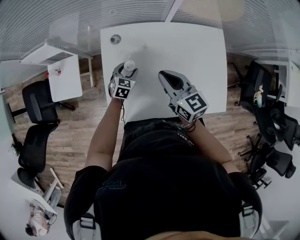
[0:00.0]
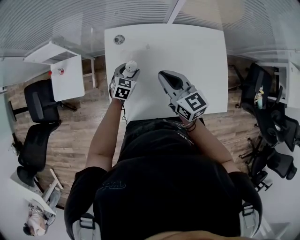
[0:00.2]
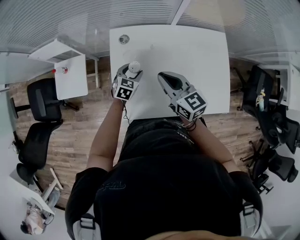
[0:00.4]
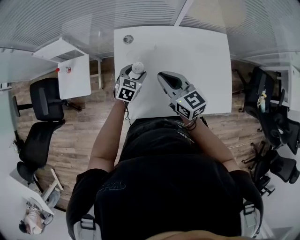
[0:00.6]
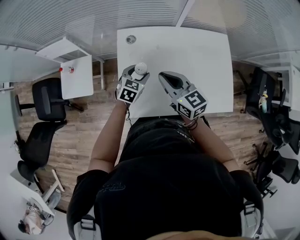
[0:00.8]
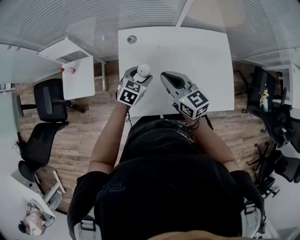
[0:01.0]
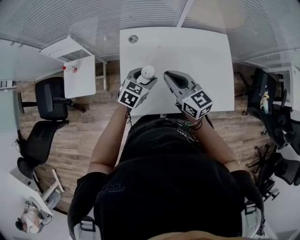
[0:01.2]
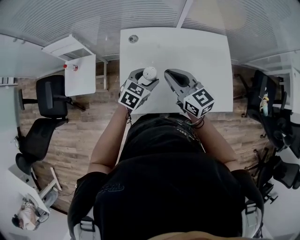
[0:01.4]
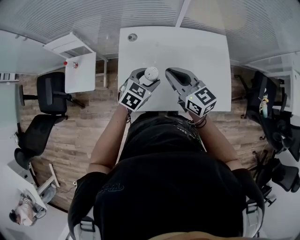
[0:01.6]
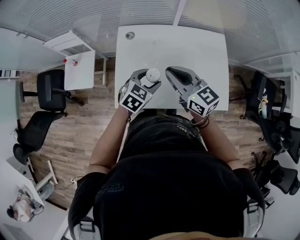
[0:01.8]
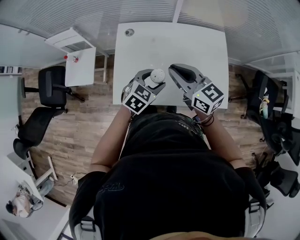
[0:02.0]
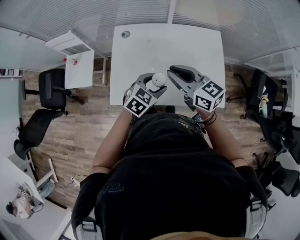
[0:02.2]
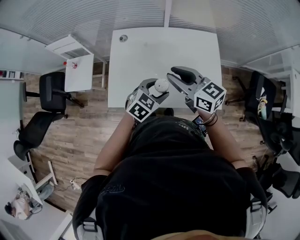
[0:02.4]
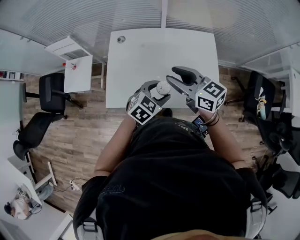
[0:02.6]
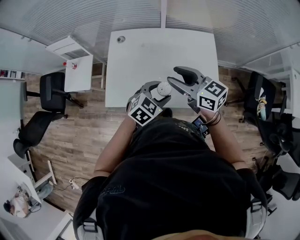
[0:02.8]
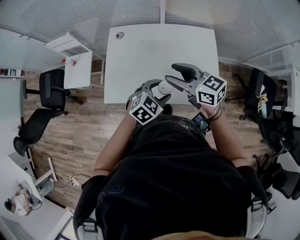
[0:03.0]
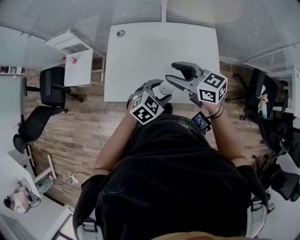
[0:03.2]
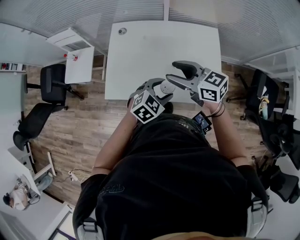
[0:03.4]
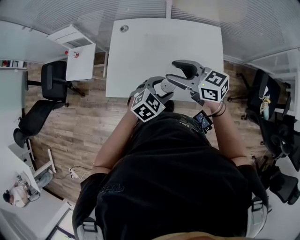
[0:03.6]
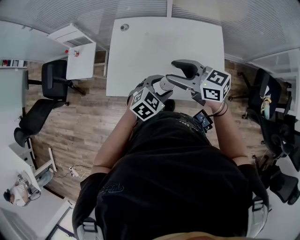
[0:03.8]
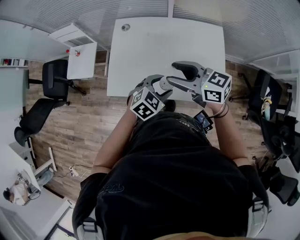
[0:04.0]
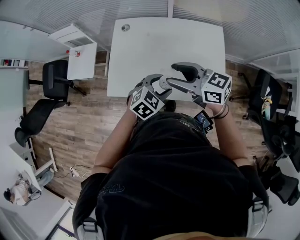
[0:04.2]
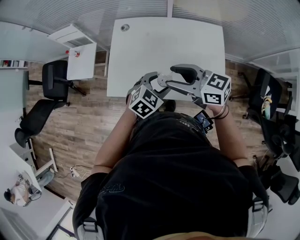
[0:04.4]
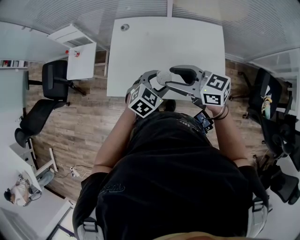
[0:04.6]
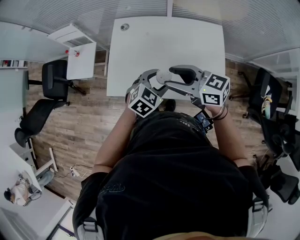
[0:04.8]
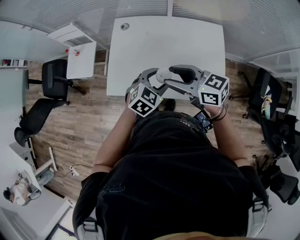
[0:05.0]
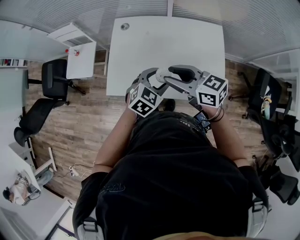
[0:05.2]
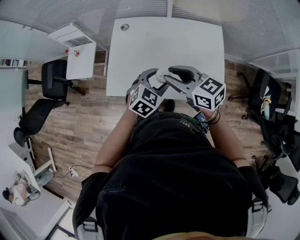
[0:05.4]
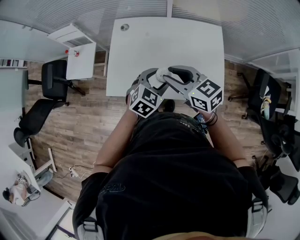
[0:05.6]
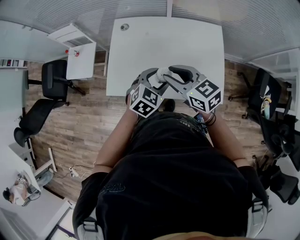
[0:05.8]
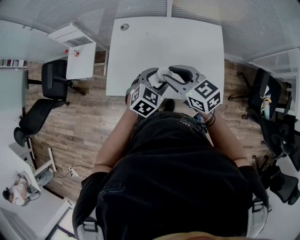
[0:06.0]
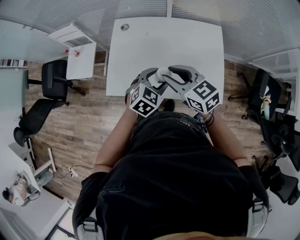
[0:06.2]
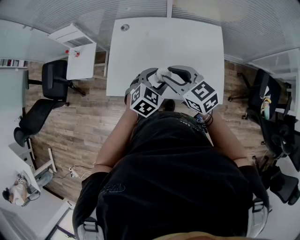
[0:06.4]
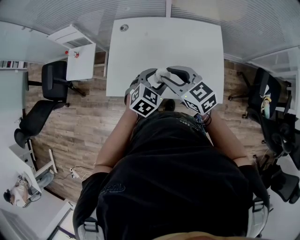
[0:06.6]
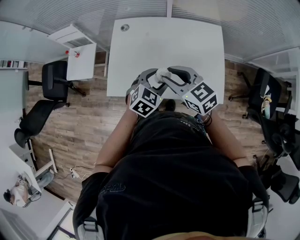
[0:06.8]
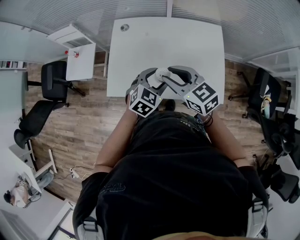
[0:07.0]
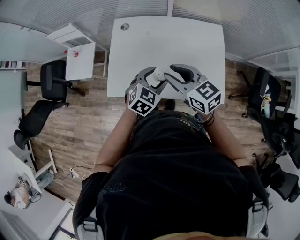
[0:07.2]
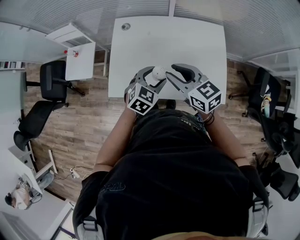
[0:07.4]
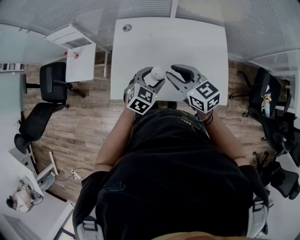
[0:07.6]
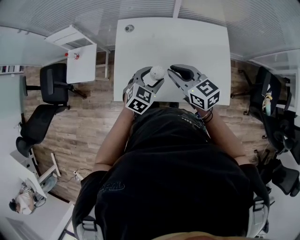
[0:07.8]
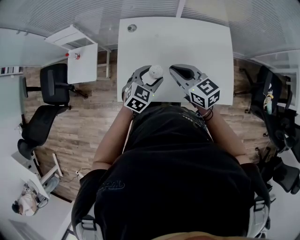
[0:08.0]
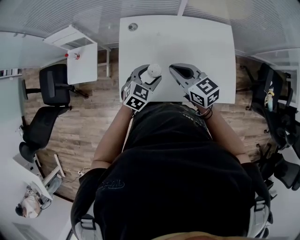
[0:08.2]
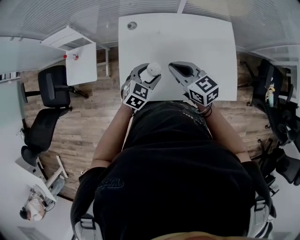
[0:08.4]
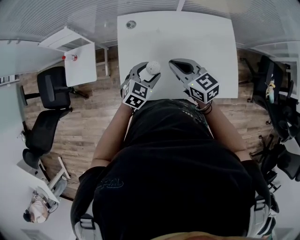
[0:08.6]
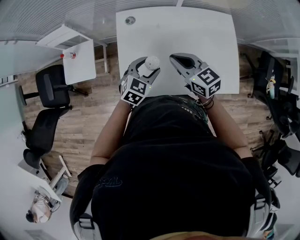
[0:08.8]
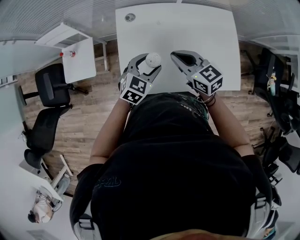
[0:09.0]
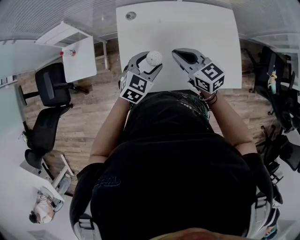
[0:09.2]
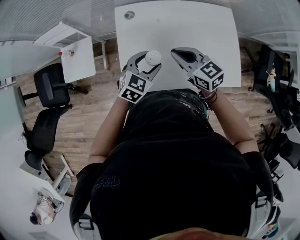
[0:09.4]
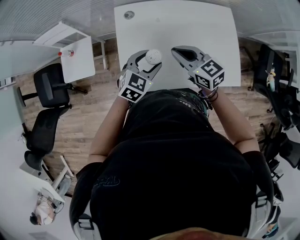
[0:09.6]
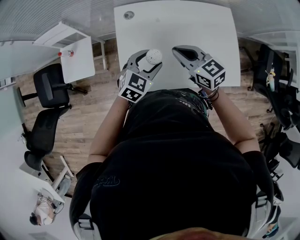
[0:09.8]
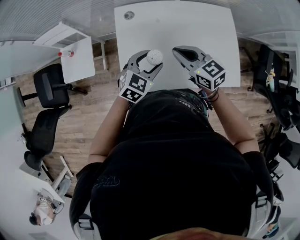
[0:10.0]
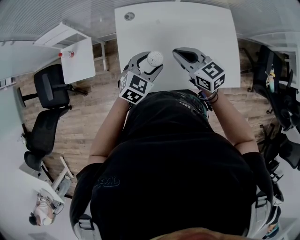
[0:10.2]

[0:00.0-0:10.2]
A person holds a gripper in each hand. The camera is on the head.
0:00.0 to 0:01.4: The left gripper is displaced upward and backward by roughly 20 cm. The right gripper shifts roughly 10 cm backward and upward.
0:01.4 to 0:03.0: The two grippers go approximately 20 cm to the right and backward. The right gripper opens its fingers.
0:03.0 to 0:04.4: The grippers make only small movements.
0:04.4 to 0:05.8: The right gripper closes.
0:05.8 to 0:07.2: The grippers move only a little.
0:07.2 to 0:08.8: The right gripper heads to the left, forward and downward, covering roughly 15 cm, and closes up. Meanwhile the left gripper shifts some 15 cm to the left and forward.
0:08.8 to 0:10.2: There are only small adjustments of the grippers.

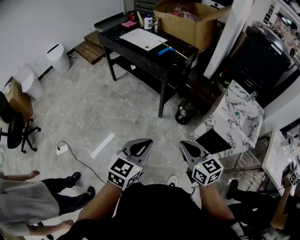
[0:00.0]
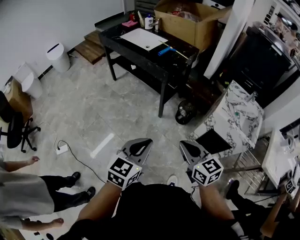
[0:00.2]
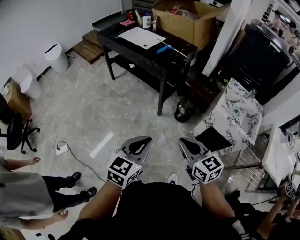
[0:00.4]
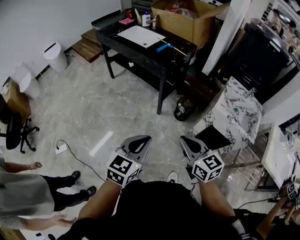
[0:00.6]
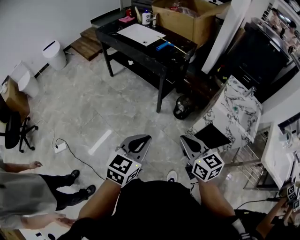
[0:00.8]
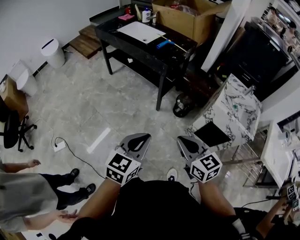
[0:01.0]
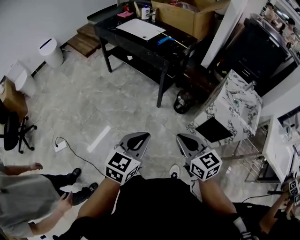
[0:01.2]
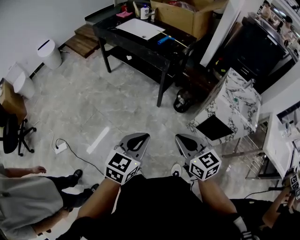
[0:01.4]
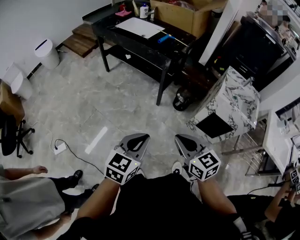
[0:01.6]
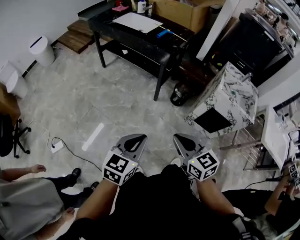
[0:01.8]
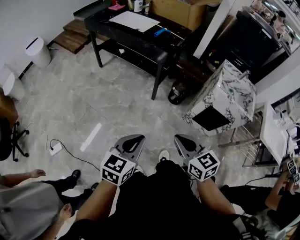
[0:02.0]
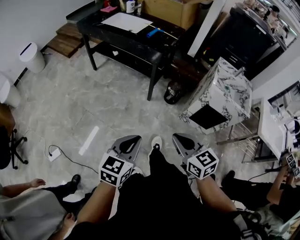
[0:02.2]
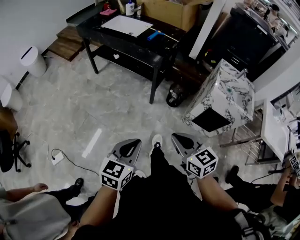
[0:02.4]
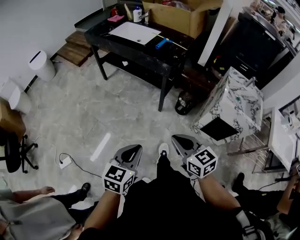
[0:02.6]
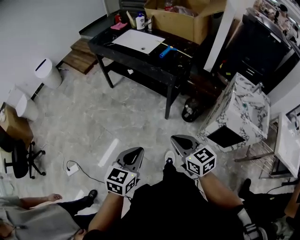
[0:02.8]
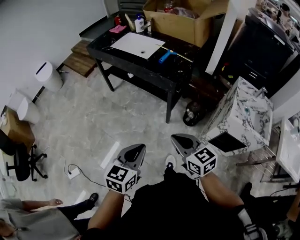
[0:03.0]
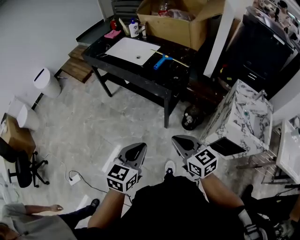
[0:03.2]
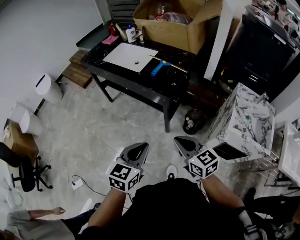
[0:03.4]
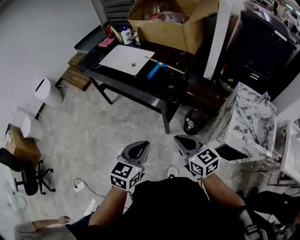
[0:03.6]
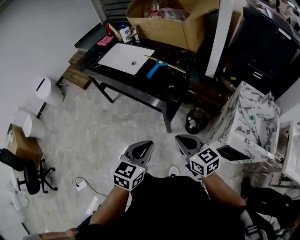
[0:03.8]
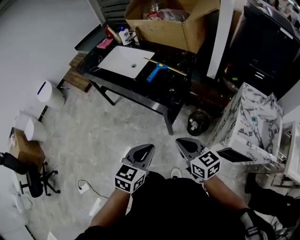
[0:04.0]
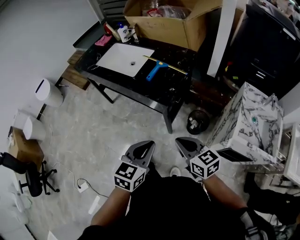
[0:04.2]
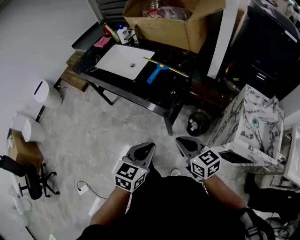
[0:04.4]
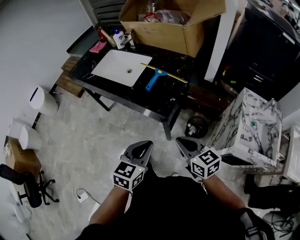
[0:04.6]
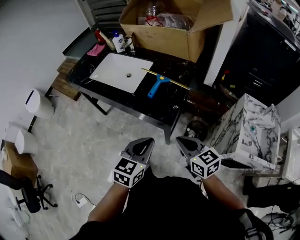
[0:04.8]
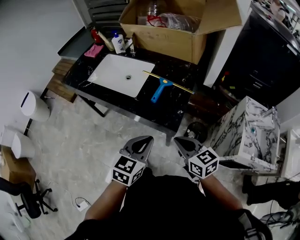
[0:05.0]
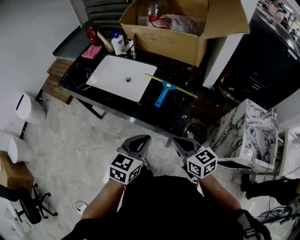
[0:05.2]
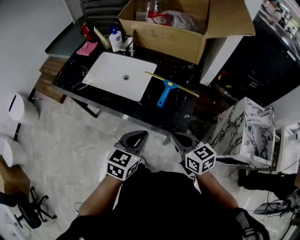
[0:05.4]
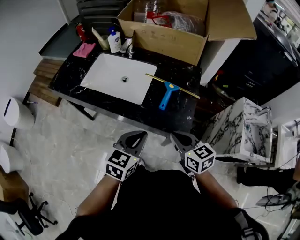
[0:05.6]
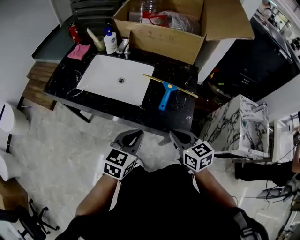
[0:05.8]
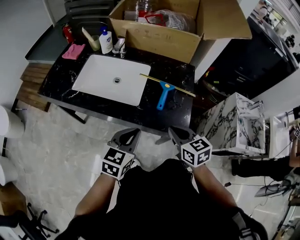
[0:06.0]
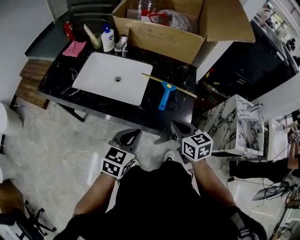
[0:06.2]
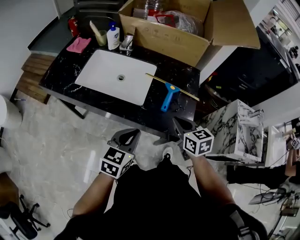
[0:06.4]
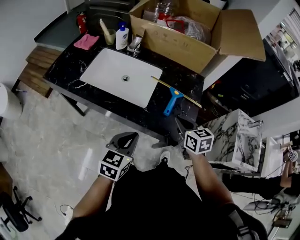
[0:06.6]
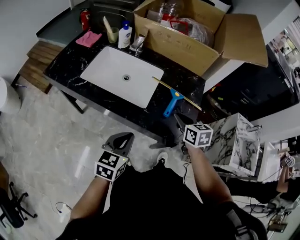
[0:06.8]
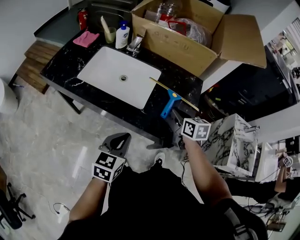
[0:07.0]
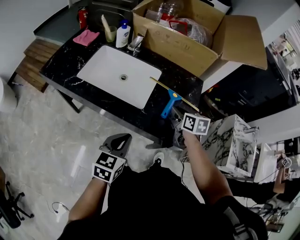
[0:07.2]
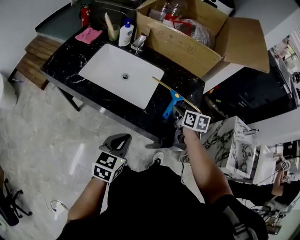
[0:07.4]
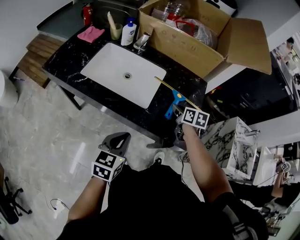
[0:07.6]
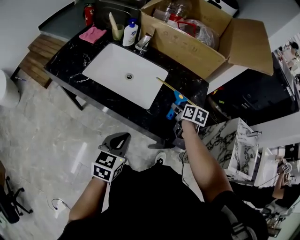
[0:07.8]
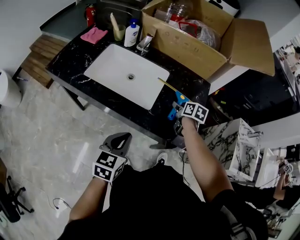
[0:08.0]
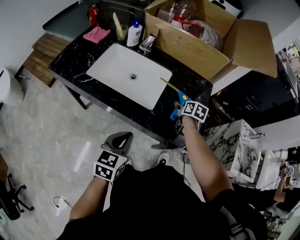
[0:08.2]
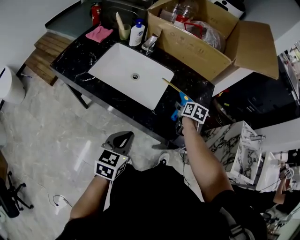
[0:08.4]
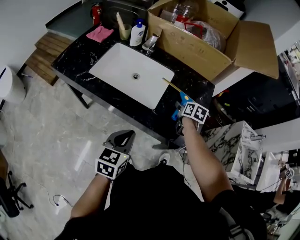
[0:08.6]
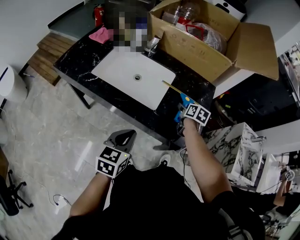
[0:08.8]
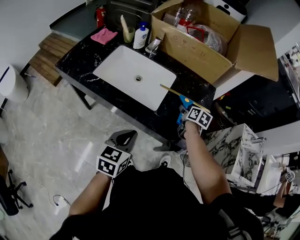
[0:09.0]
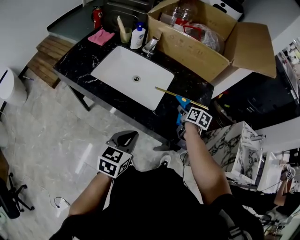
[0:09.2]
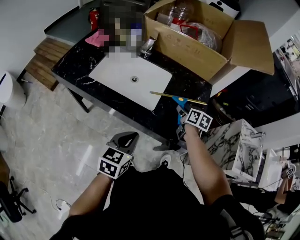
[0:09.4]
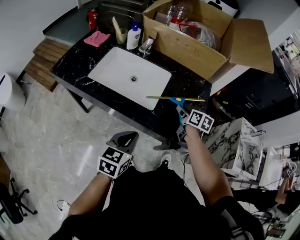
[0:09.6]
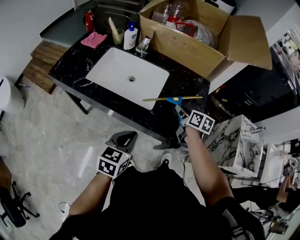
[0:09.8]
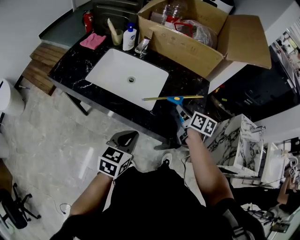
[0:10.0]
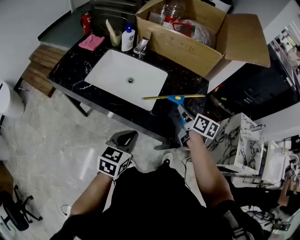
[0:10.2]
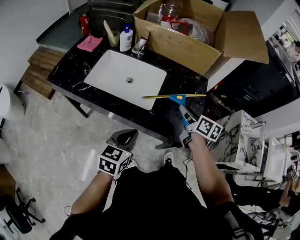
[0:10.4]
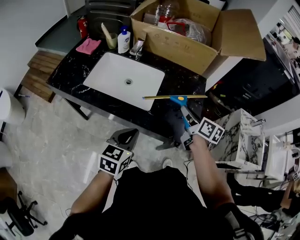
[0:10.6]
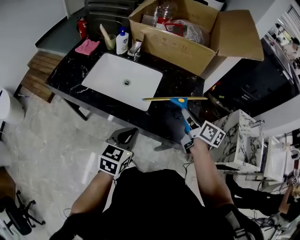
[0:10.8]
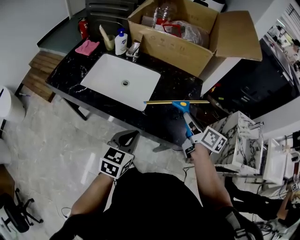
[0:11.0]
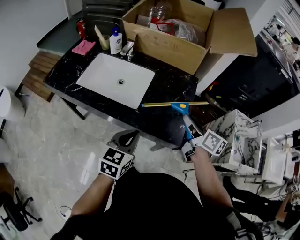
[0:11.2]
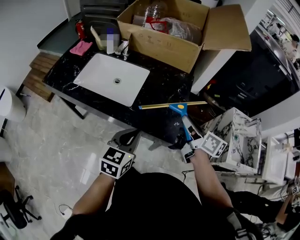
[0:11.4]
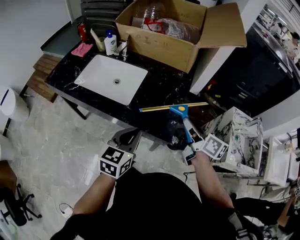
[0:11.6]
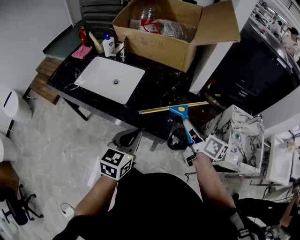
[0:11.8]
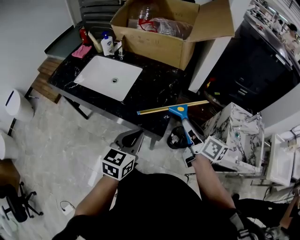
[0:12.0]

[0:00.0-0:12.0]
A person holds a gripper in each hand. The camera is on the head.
0:00.0 to 0:01.6: Both grippers travel together to the left, roughly 10 cm.
0:01.6 to 0:03.0: The grippers both shift forward by some 20 cm.
0:03.0 to 0:04.4: The two grippers go about 25 cm forward and to the right.
0:04.4 to 0:06.0: The two grippers go roughly 30 cm forward and to the left. The right gripper rotates roughly 30 degrees.
0:06.0 to 0:07.6: The right gripper shifts some 20 cm forward, swivels approximately 20 degrees, and opens its fingers. Meanwhile the left gripper goes roughly 5 cm to the left.
0:07.6 to 0:09.0: There are only small adjustments of the grippers.
0:09.0 to 0:10.4: The right gripper goes about 15 cm upward and backward, and changes its angle by approximately 20 degrees.
0:10.4 to 0:12.0: The right gripper heads to the right, backward and upward, covering about 25 cm. Meanwhile the left gripper goes approximately 20 cm to the right.

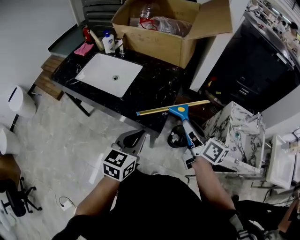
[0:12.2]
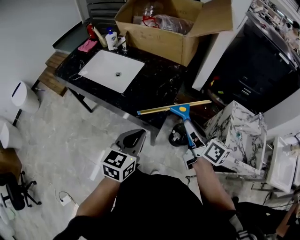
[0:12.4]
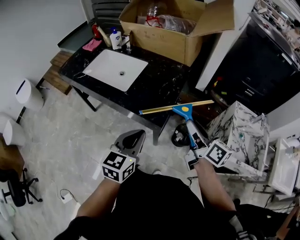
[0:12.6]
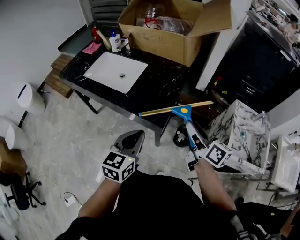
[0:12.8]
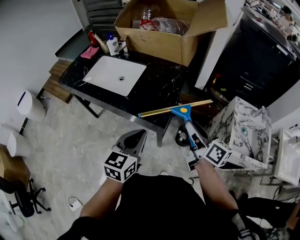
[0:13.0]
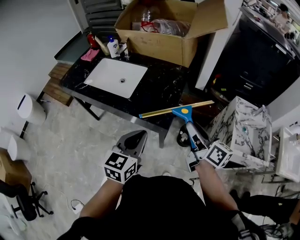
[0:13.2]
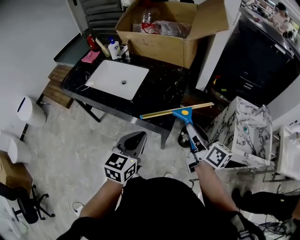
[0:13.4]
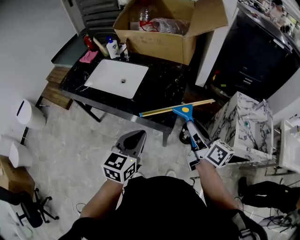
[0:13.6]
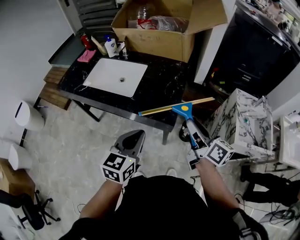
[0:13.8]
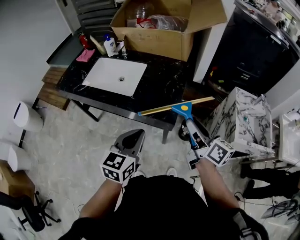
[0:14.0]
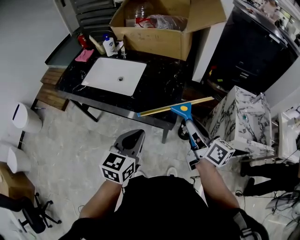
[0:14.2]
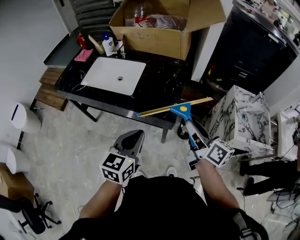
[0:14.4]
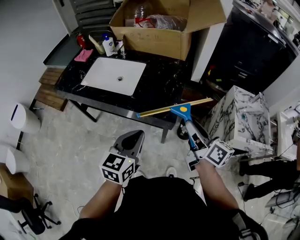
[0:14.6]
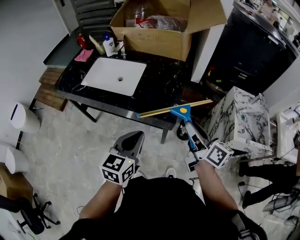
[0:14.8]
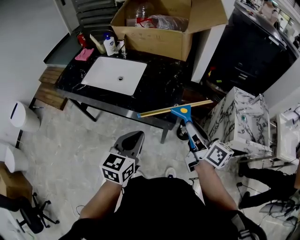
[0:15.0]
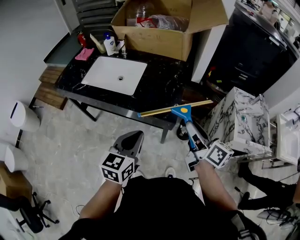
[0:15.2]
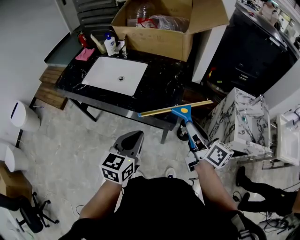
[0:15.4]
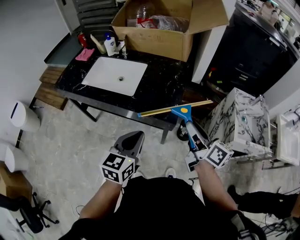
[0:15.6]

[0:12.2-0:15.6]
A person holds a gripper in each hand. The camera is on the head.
0:12.2 to 0:13.8: The right gripper moves backward, approximately 5 cm. Meanwhile the left gripper travels to the left by roughly 5 cm.
0:13.8 to 0:15.6: There are only small adjustments of the grippers.
